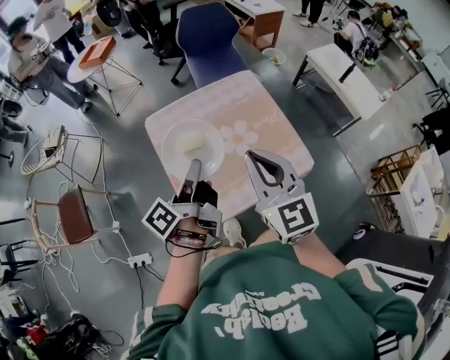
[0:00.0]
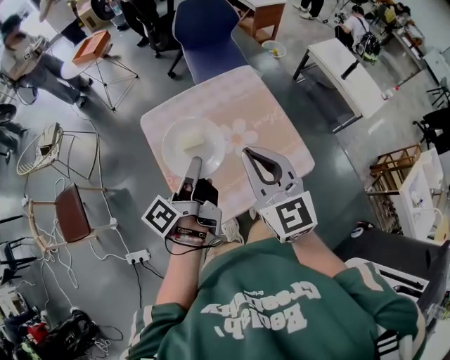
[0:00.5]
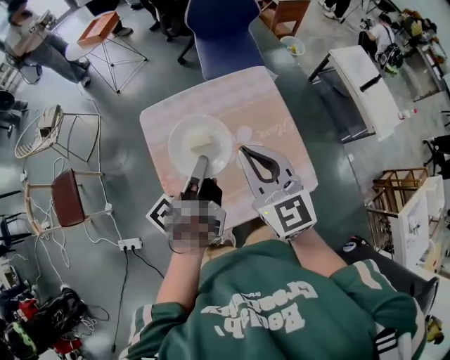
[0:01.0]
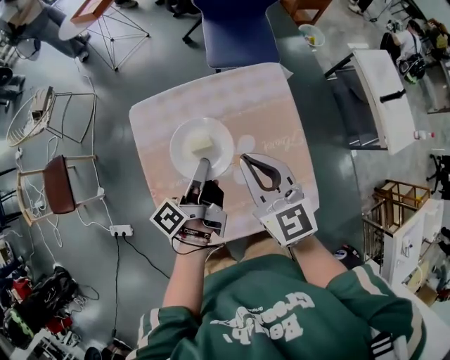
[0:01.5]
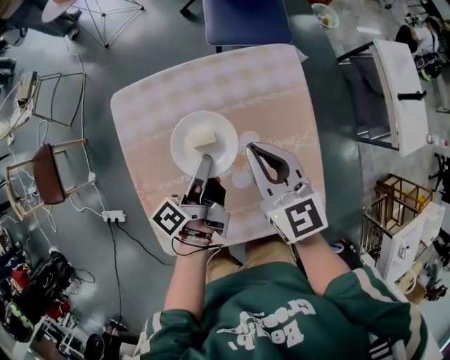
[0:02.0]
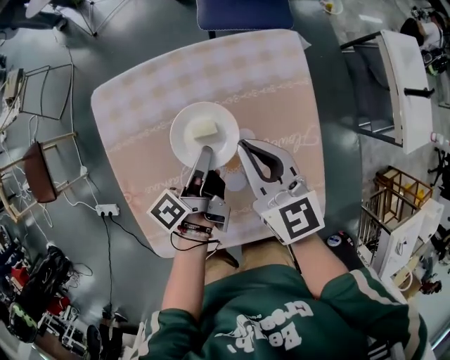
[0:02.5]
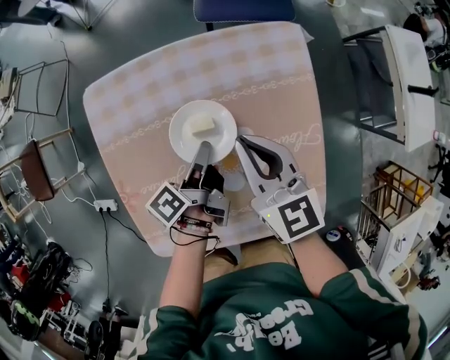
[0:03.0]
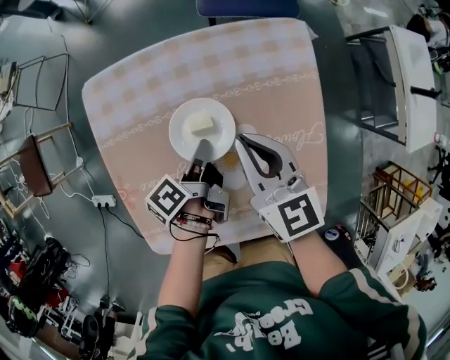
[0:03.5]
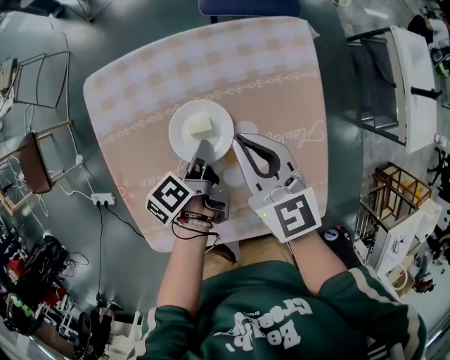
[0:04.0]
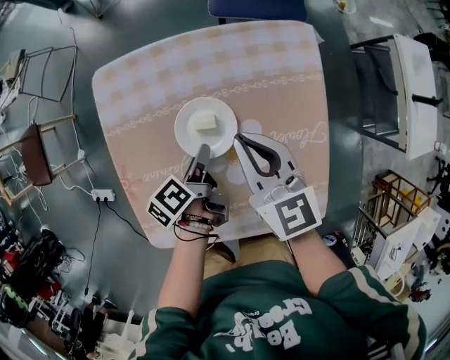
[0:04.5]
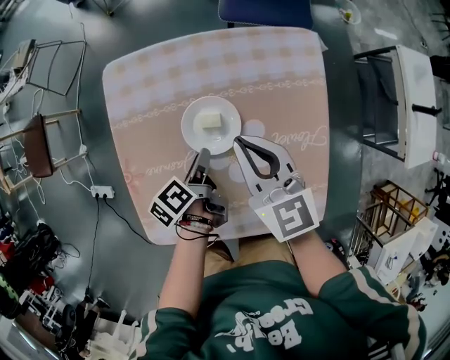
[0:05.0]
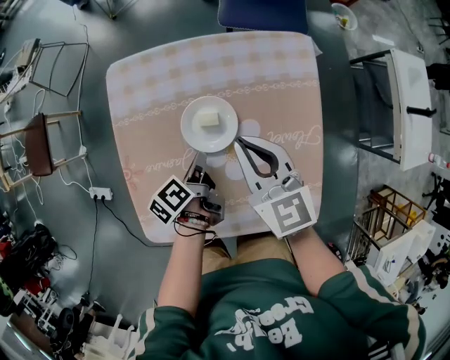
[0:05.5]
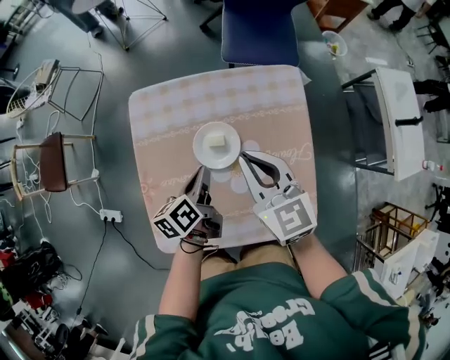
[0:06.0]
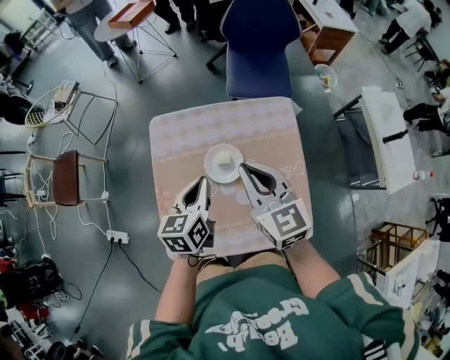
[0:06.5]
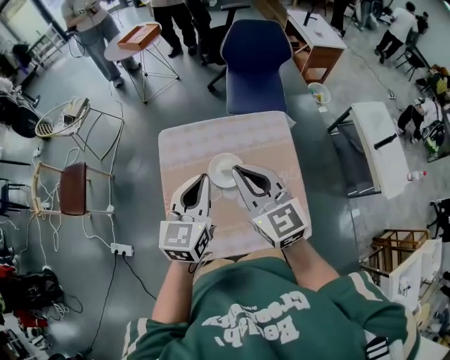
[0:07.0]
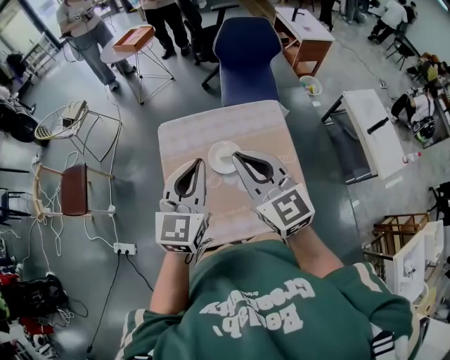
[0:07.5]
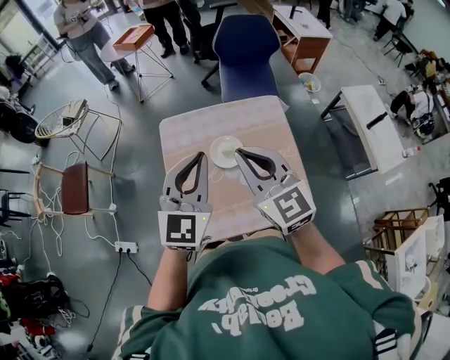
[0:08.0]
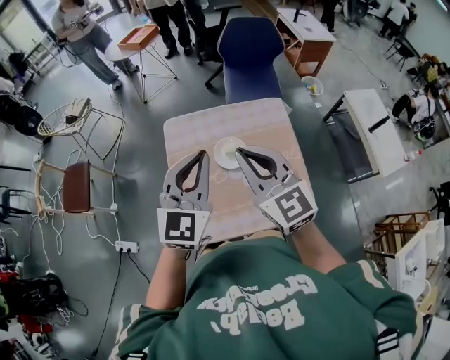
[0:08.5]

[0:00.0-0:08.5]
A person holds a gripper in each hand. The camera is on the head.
0:00.0 to 0:02.0: The right gripper moves roughly 30 cm, and rotates roughly 20 degrees.
0:02.0 to 0:04.0: The right gripper shifts about 5 cm downward.
0:04.0 to 0:06.5: The right gripper is displaced upward by some 15 cm.
0:06.5 to 0:08.5: The right gripper heads upward, covering some 15 cm.

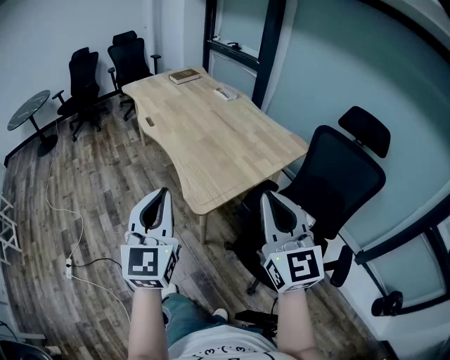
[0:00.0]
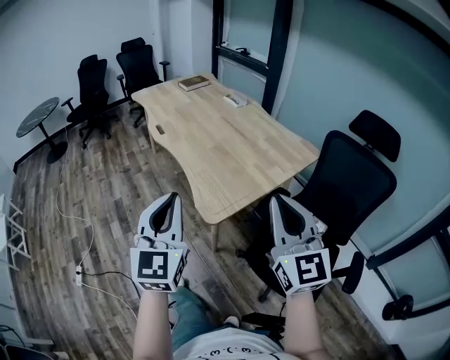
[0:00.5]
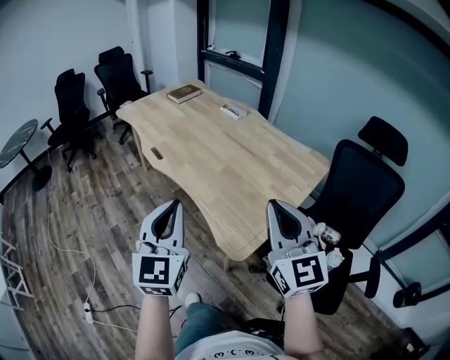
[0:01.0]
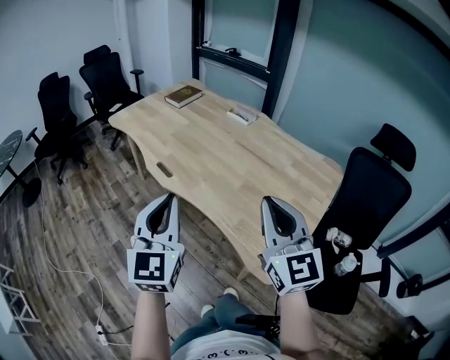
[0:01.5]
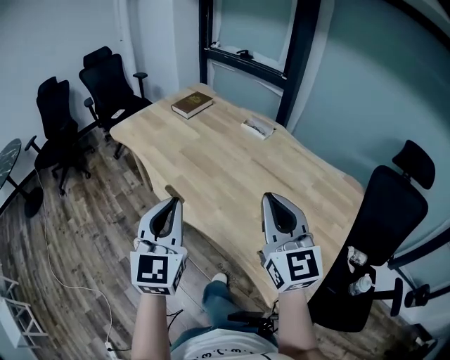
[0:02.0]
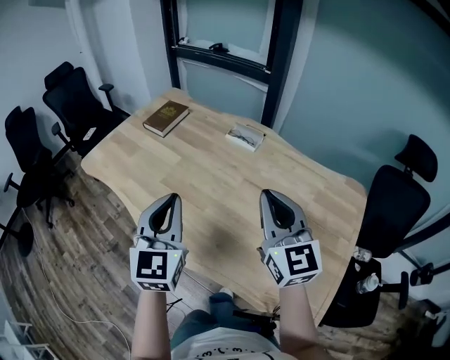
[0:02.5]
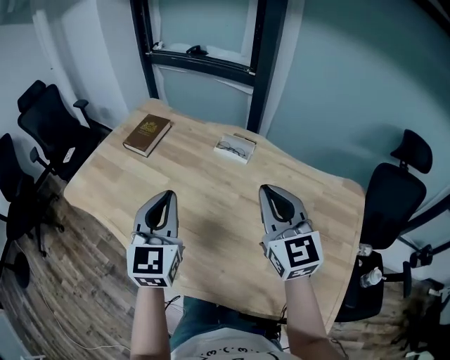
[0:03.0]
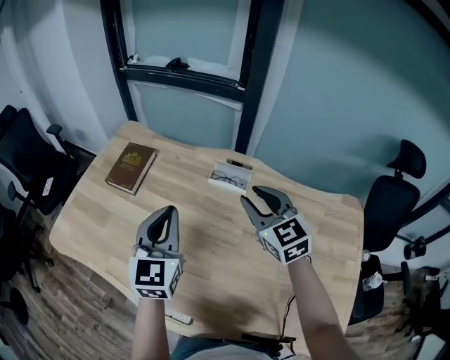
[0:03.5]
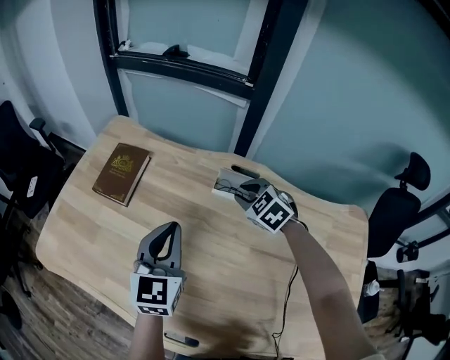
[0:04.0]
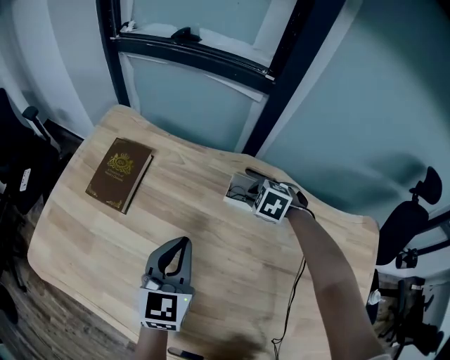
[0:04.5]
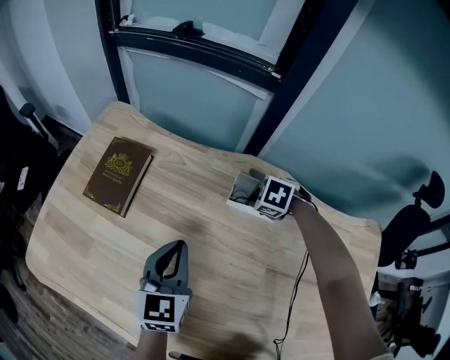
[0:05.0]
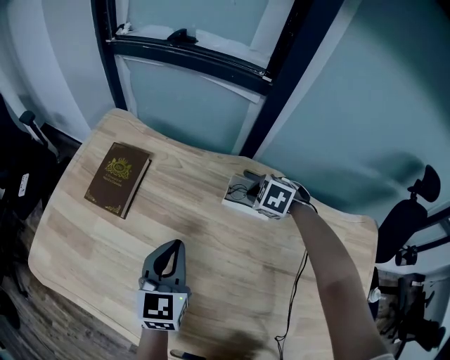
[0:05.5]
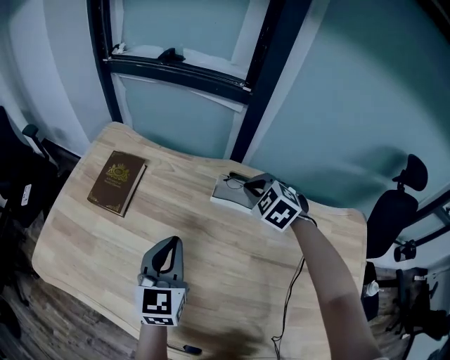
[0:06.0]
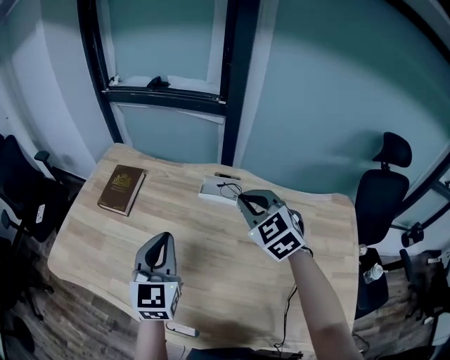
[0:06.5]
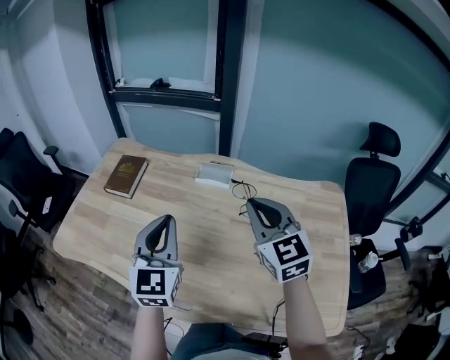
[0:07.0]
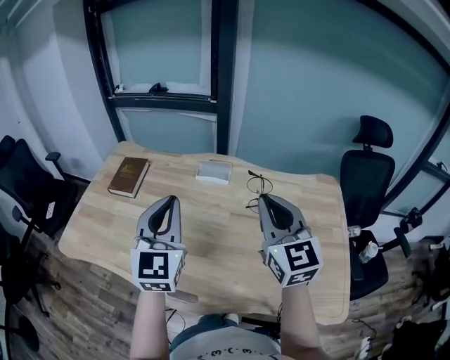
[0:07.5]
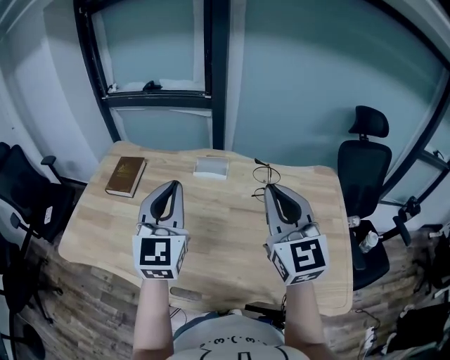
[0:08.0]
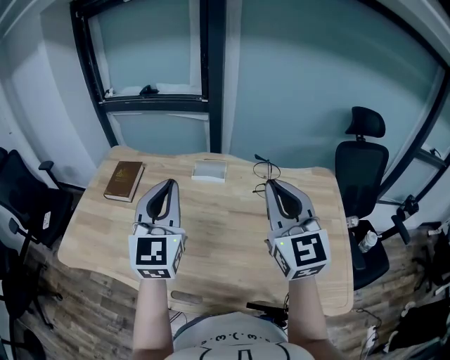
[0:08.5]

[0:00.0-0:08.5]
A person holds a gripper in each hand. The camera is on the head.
0:00.0 to 0:02.0: Both grippers are carried forward and to the left, roughly 50 cm.
0:02.0 to 0:04.0: Both grippers are carried forward, approximately 60 cm. The left gripper rotates roughly 30 degrees. Meanwhile the right gripper tips its fingers downward by some 50 degrees, and opens up.
0:04.0 to 0:06.5: The right gripper travels upward by approximately 15 cm, changes its angle by some 20 degrees, and closes its fingers. The left gripper goes downward and returns, approximately 10 cm each way.
0:06.5 to 0:08.5: The right gripper shifts some 25 cm backward and upward, and tips its fingers upward by approximately 30 degrees. Meanwhile the left gripper is displaced upward and backward by approximately 15 cm.

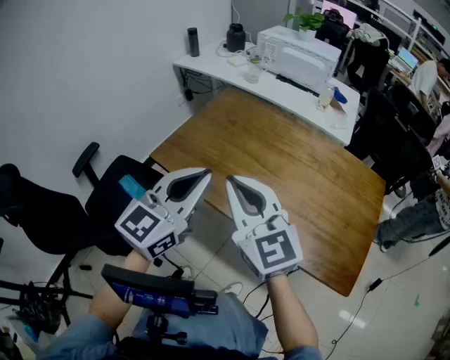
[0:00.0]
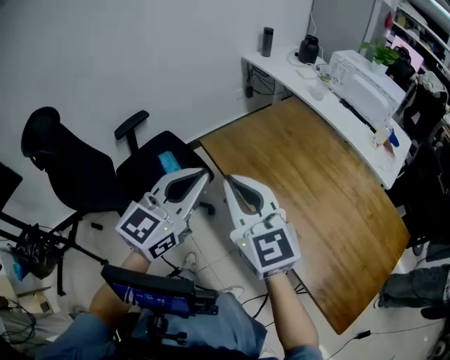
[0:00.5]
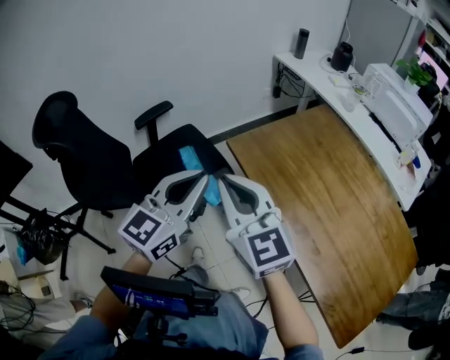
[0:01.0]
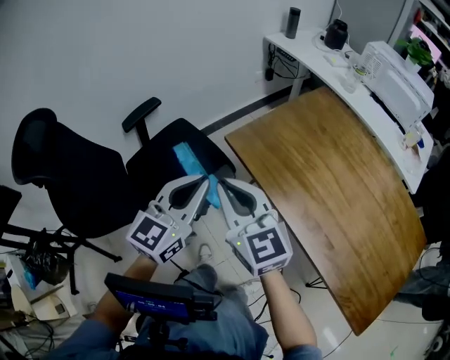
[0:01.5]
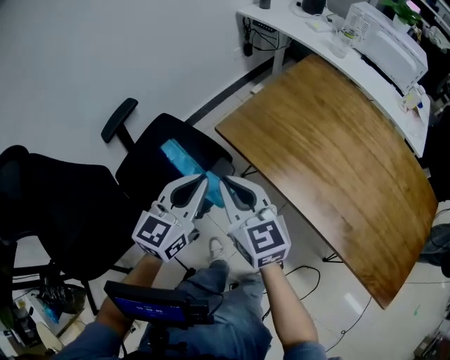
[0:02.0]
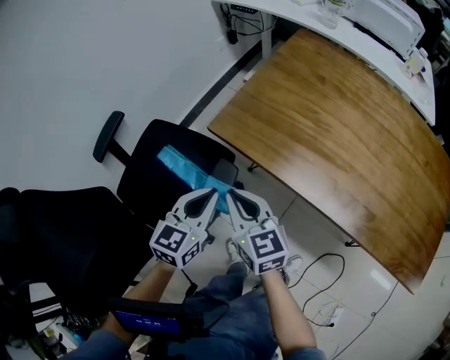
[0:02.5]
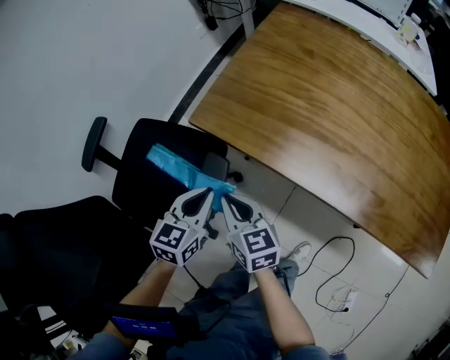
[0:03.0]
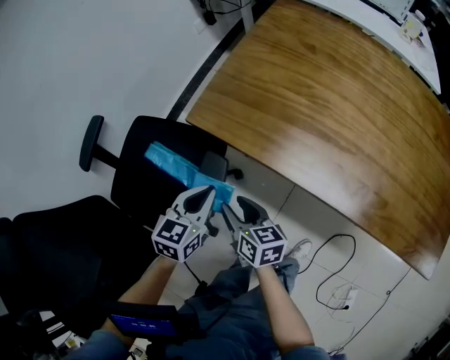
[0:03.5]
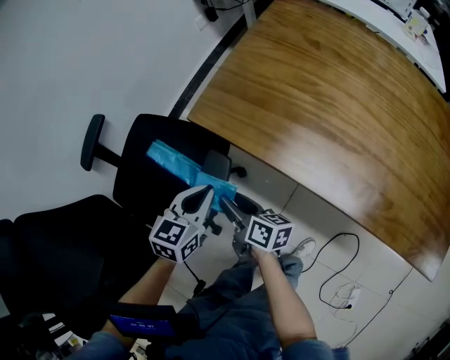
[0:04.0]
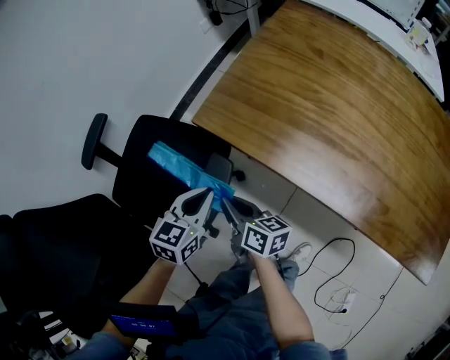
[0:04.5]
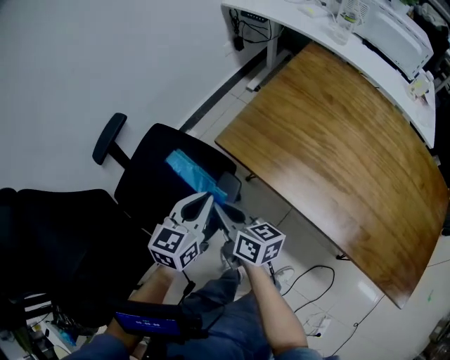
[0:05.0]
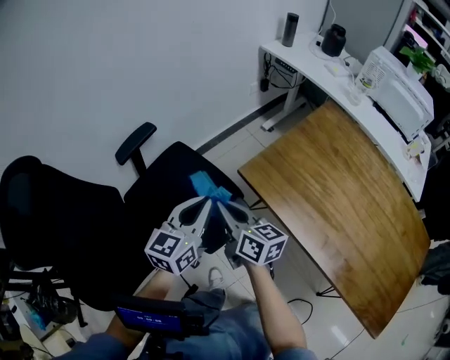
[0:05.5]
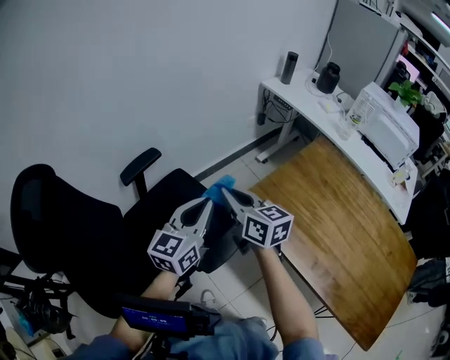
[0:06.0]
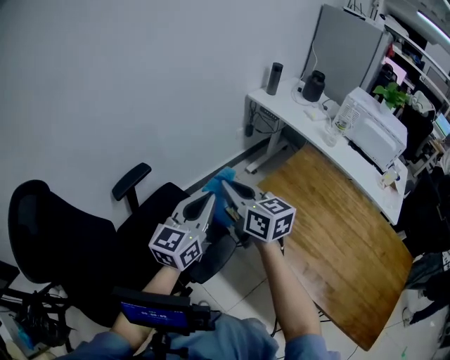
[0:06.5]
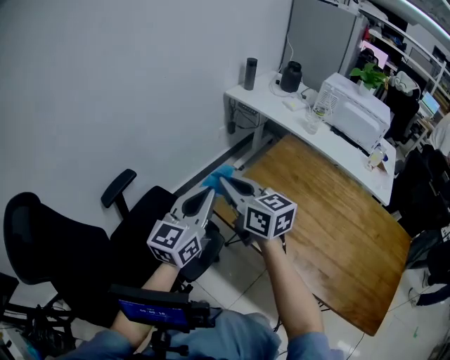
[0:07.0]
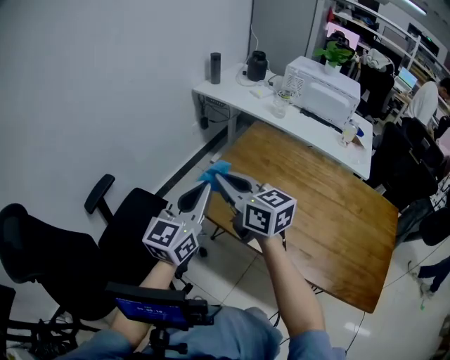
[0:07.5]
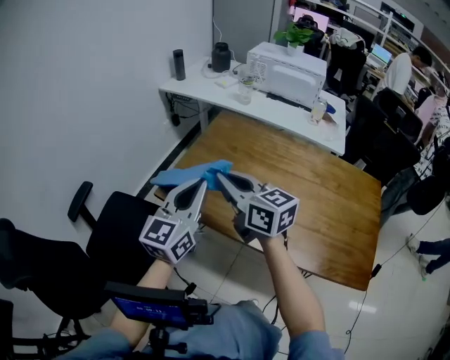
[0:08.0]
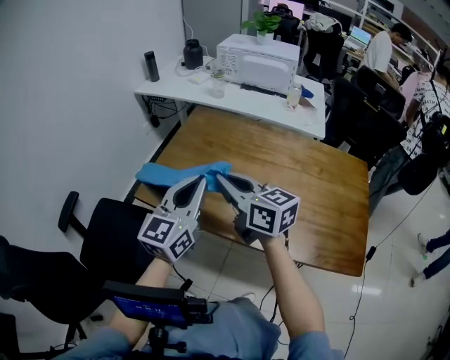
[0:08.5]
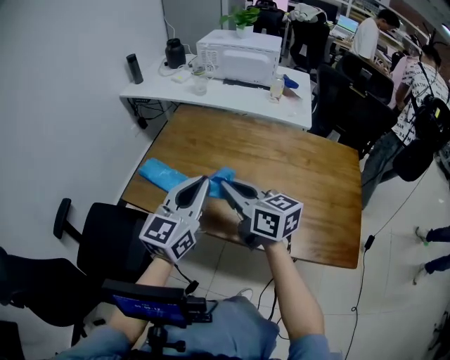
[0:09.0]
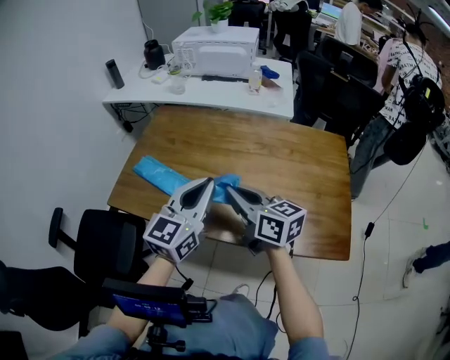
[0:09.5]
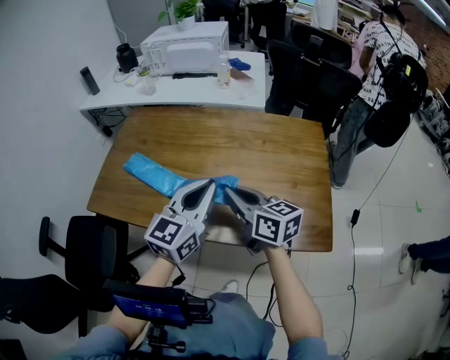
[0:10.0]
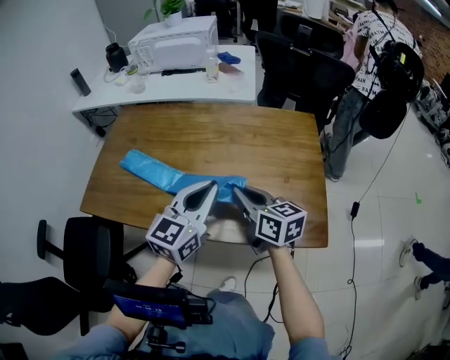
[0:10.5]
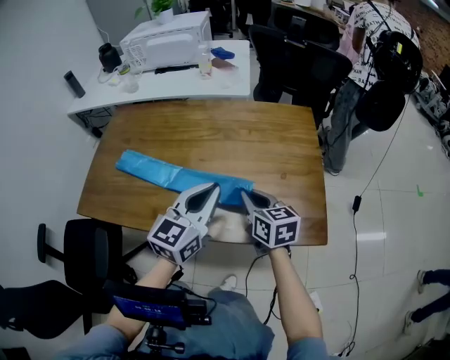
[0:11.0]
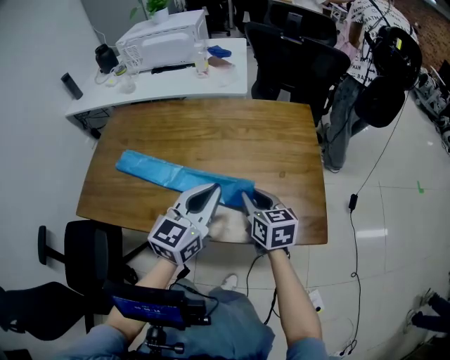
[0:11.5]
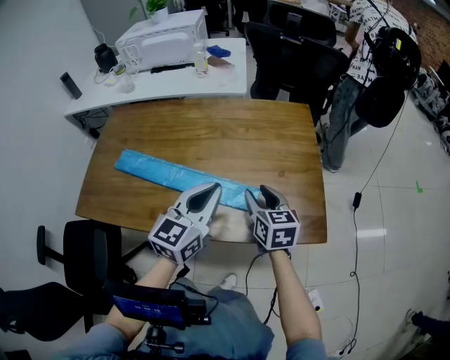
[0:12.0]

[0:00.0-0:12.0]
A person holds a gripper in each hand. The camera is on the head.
0:00.0 to 0:02.0: The right gripper shifts by about 35 cm, while the left gripper ends up roughly 35 cm from where it was, and swivels approximately 20 degrees.
0:02.0 to 0:04.0: Both grippers move downward, approximately 25 cm. The left gripper changes its angle by about 30 degrees, while the right gripper rolls clockwise, seen from behind, by some 60 degrees, and opens up.
0:04.0 to 0:06.0: The left gripper travels upward by approximately 25 cm, and angles its fingers upward, by roughly 30 degrees; the right gripper moves upward and forward, about 35 cm, rolls counterclockwise, seen from behind, by roughly 40 degrees, and closes its fingers.
0:06.0 to 0:08.0: The two grippers go roughly 30 cm to the right. The left gripper changes its angle by about 30 degrees. Meanwhile the right gripper swivels some 20 degrees.
0:08.0 to 0:10.0: The grippers both shift to the right by roughly 35 cm. The left gripper swivels approximately 20 degrees, while the right gripper rotates approximately 20 degrees.
0:10.0 to 0:12.0: The right gripper travels to the right and downward by some 20 cm, rotates roughly 30 degrees, and opens its fingers, while the left gripper shifts about 5 cm to the right.
